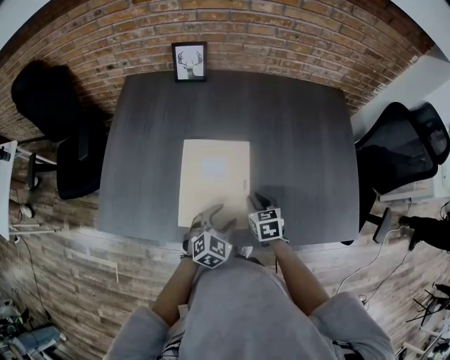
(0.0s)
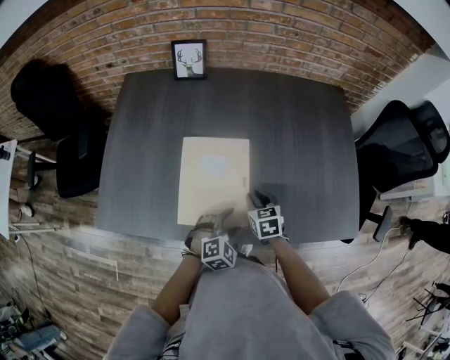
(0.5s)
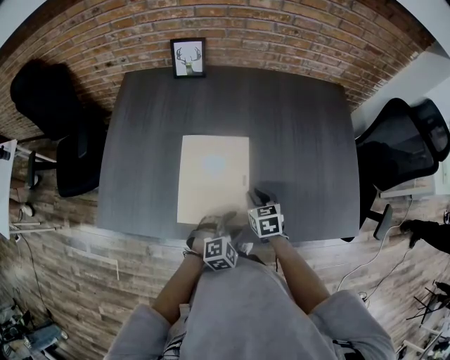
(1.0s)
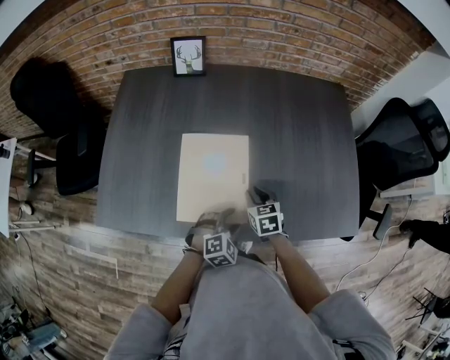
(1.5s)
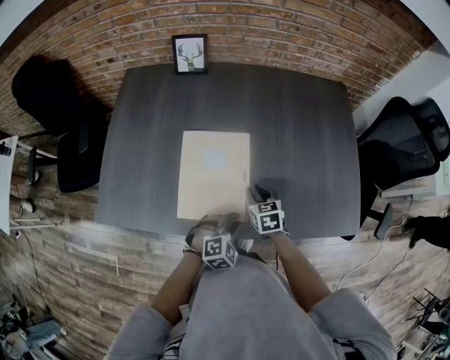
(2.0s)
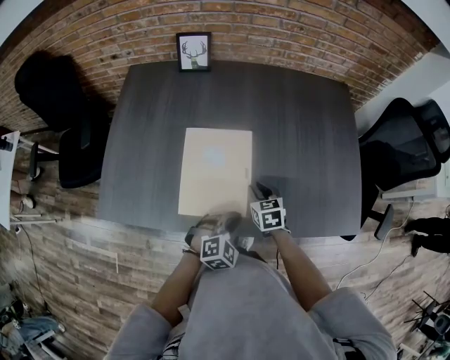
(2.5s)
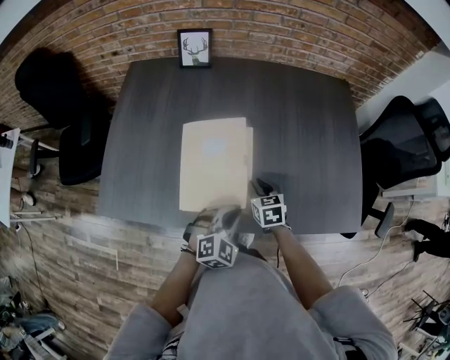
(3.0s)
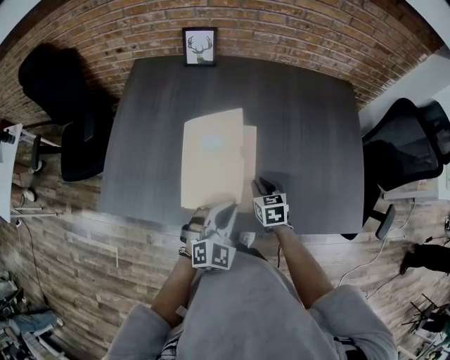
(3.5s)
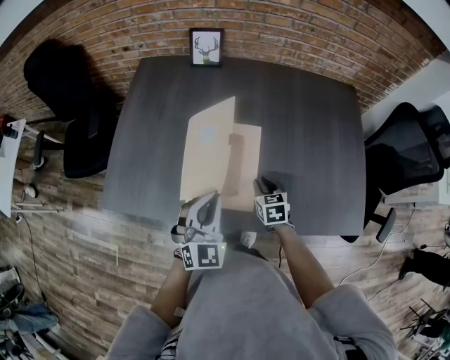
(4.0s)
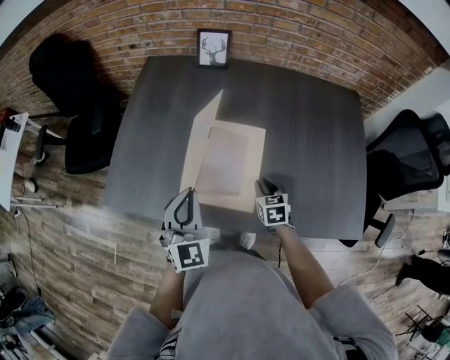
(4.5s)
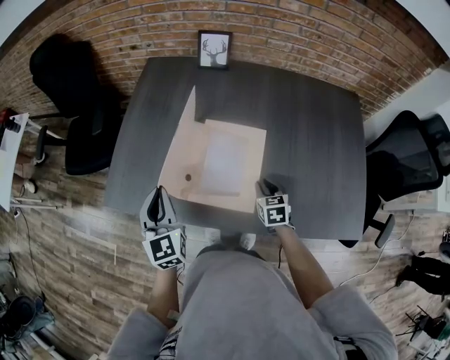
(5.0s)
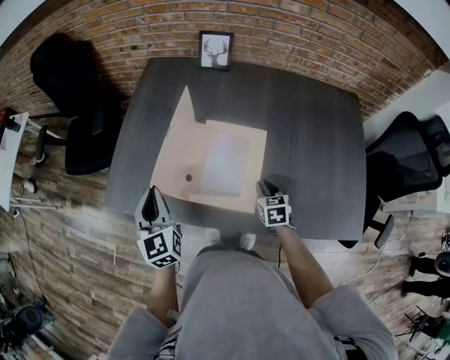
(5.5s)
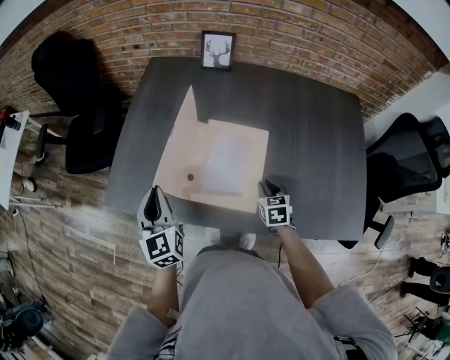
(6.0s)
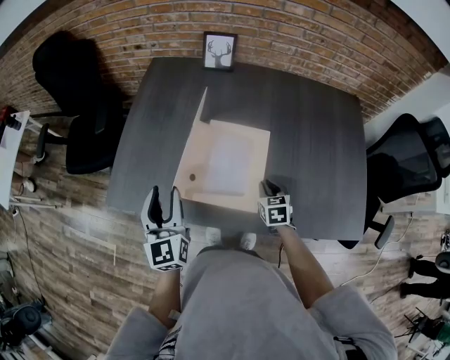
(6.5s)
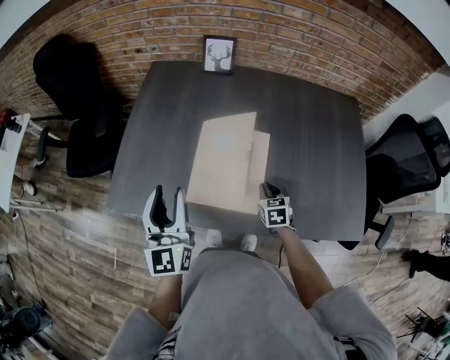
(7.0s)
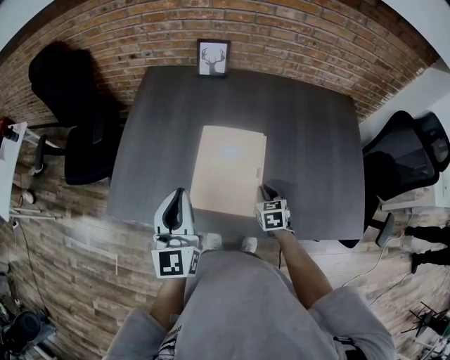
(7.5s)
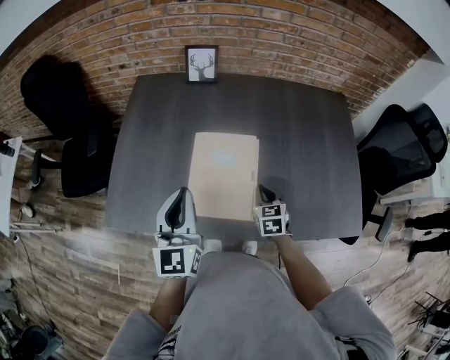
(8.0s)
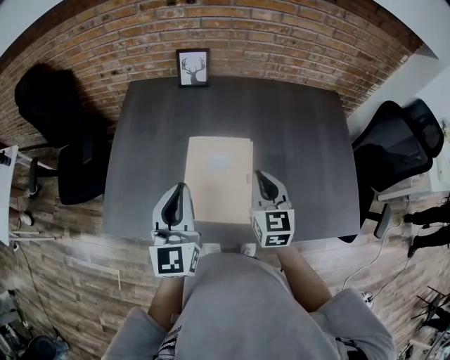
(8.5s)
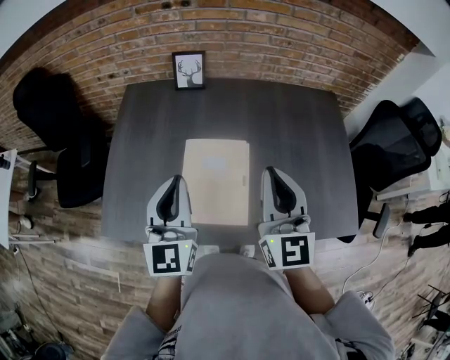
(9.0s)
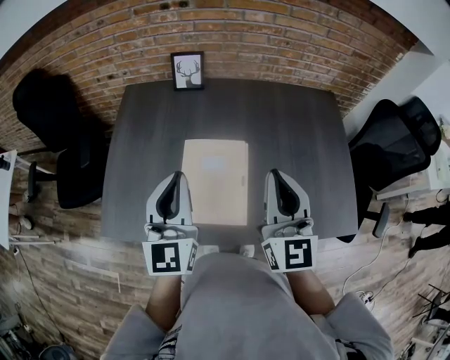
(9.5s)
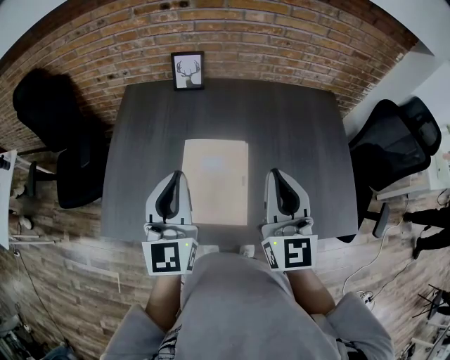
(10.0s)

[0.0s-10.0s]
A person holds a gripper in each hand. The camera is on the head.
0.0s to 2.0s: The left gripper ends up about 5 cm from where it was, rotates roughly 20 degrees, and closes up.
2.0s to 4.0s: The left gripper travels upward and to the left by roughly 20 cm, and points its fingers about 30 degrees further upward.
4.0s to 6.0s: The left gripper moves to the left, about 20 cm, and swivels roughly 40 degrees.
6.0s to 8.0s: The left gripper is displaced to the right and upward by roughly 15 cm, rotates roughly 30 degrees, and opens and closes again.
8.0s to 10.0s: The left gripper heads upward, covering approximately 5 cm. Meanwhile the right gripper goes approximately 30 cm upward, and points its fingers roughly 40 degrees further upward.

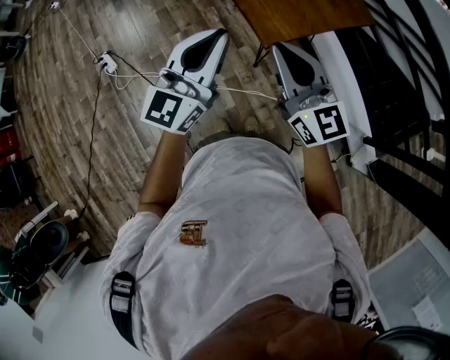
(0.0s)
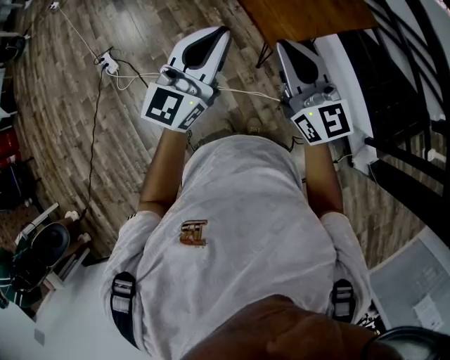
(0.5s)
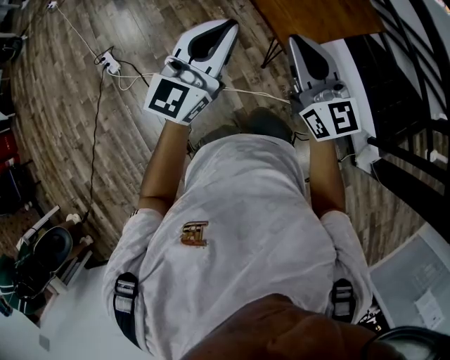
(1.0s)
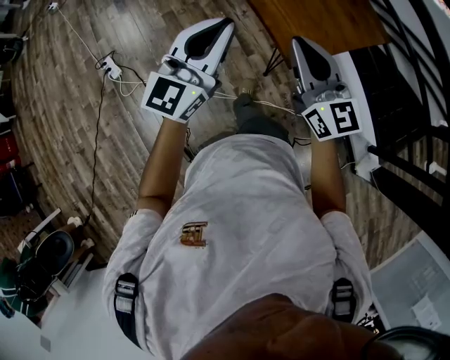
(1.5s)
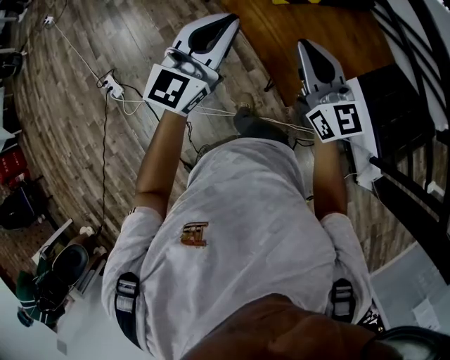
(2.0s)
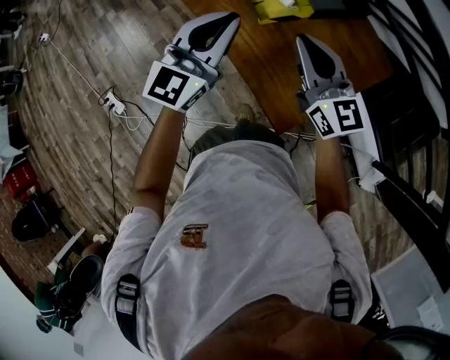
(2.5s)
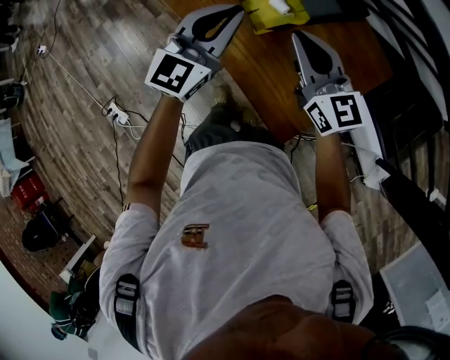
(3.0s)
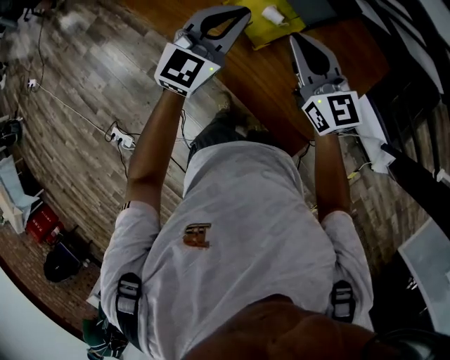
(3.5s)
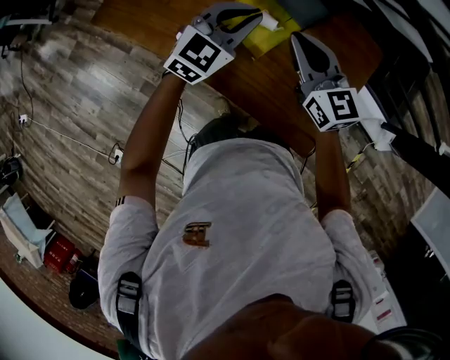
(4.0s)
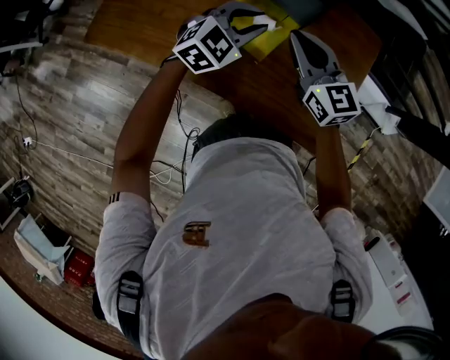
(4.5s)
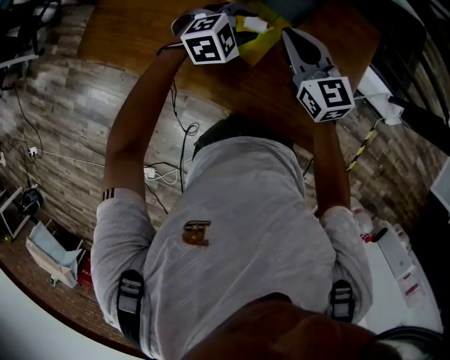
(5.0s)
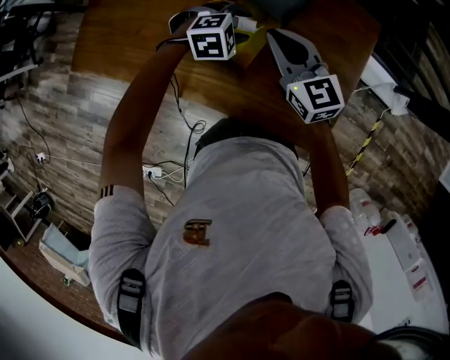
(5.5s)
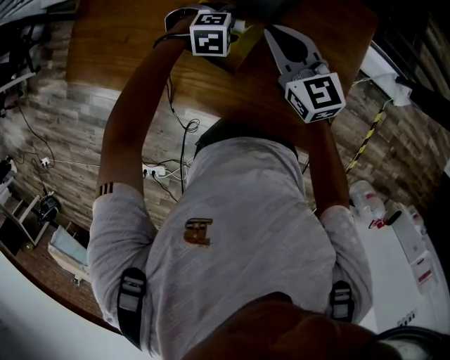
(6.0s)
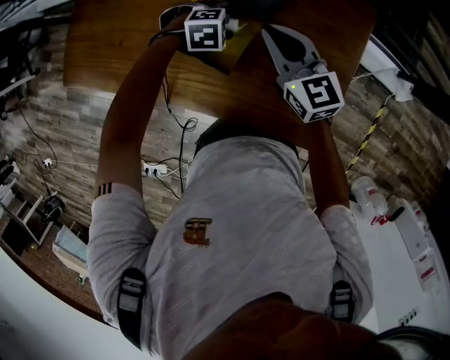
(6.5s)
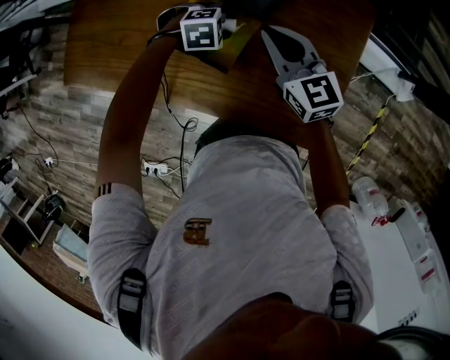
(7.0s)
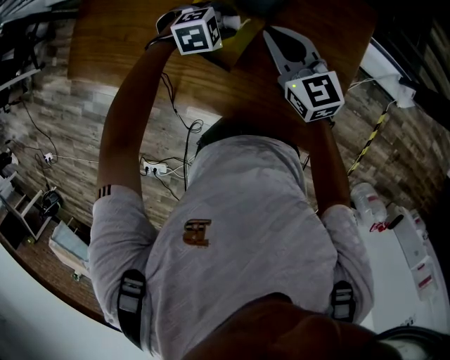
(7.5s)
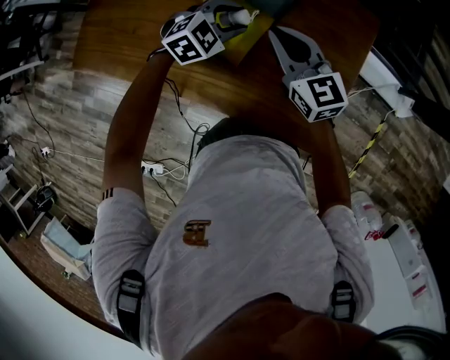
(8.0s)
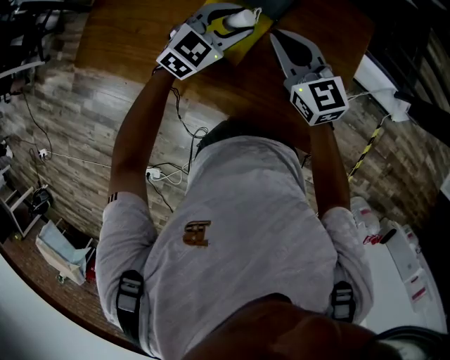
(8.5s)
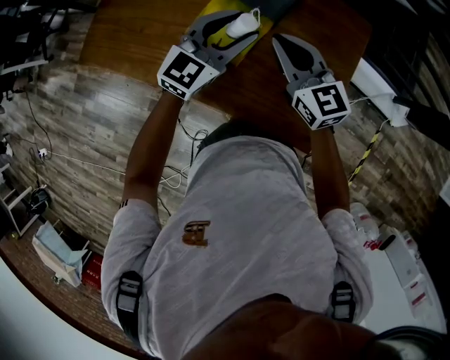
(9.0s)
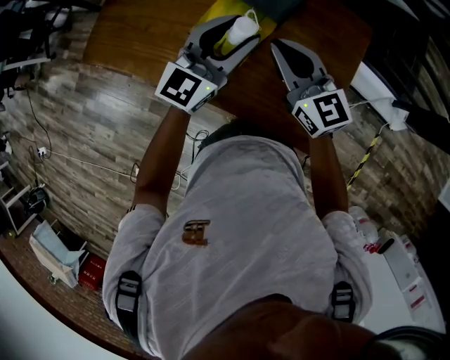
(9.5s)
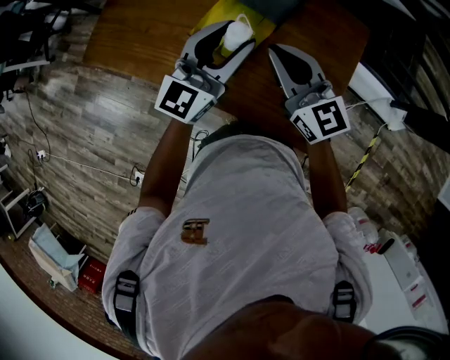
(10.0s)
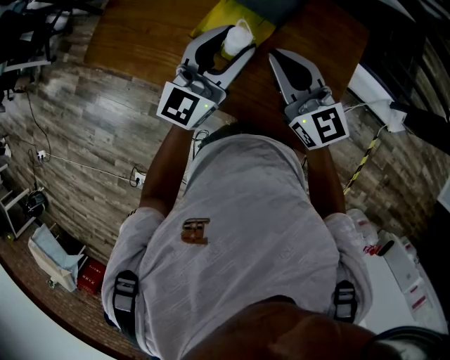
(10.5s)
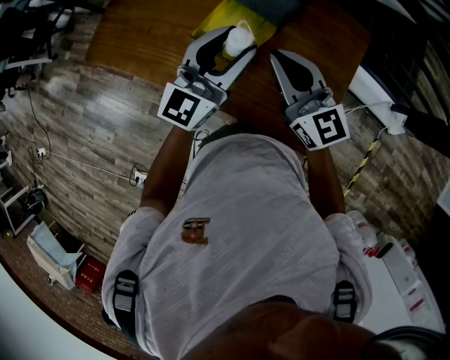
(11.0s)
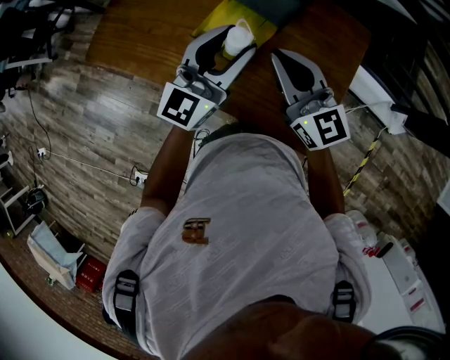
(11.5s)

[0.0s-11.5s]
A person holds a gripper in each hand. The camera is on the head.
0.0s to 2.0s: Both grippers travel together forward, some 35 cm.
2.0s to 4.0s: The right gripper changes place by some 40 cm, and swivels about 30 degrees; the left gripper changes place by roughly 50 cm, and changes its angle by roughly 40 degrees.
4.0s to 6.0s: The left gripper goes approximately 25 cm downward, angles its fingers downward, by approximately 50 degrees, and opens. The right gripper ends up about 15 cm from where it was.
6.0s to 7.5s: The grippers stay close to where they were, moving slightly.
7.5s to 9.5s: The left gripper heads upward and backward, covering approximately 30 cm, and angles its fingers upward, by some 60 degrees, while the right gripper shifts approximately 15 cm backward and upward.
9.5s to 11.5s: The grippers make only small movements.

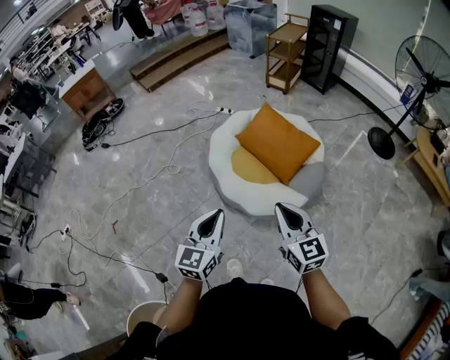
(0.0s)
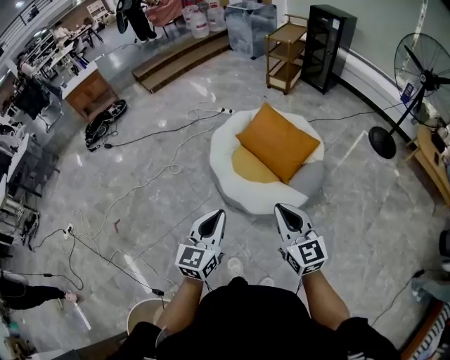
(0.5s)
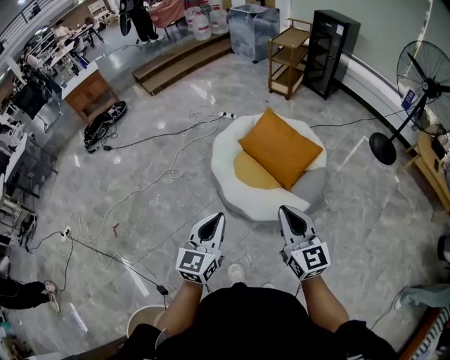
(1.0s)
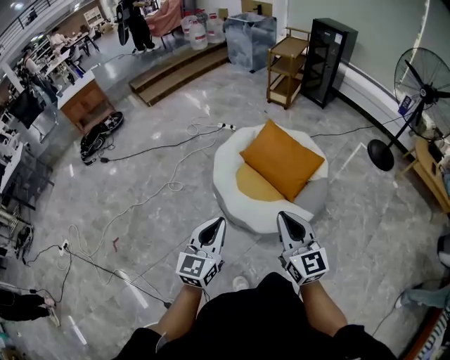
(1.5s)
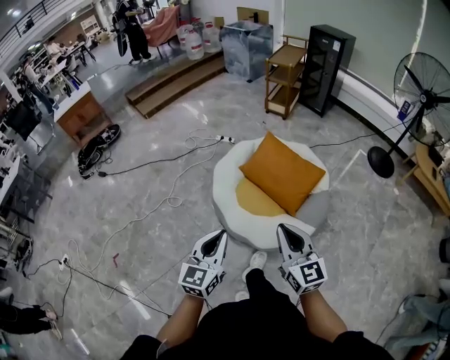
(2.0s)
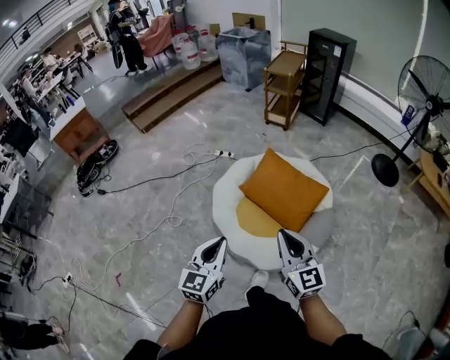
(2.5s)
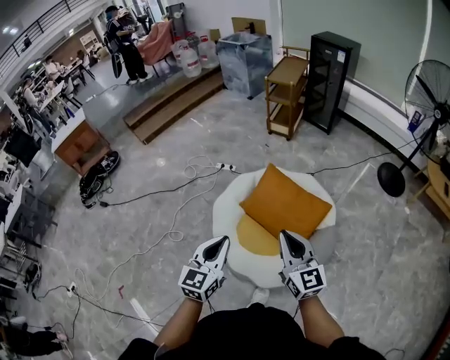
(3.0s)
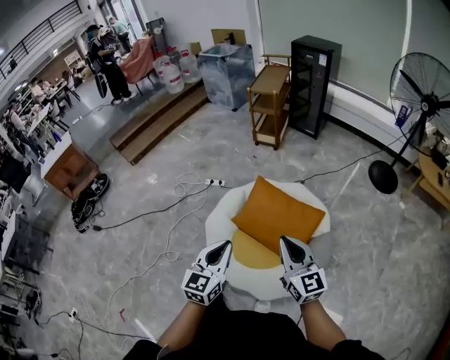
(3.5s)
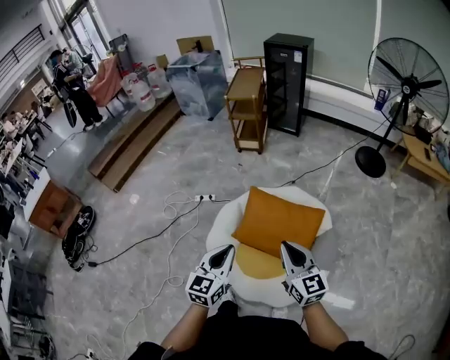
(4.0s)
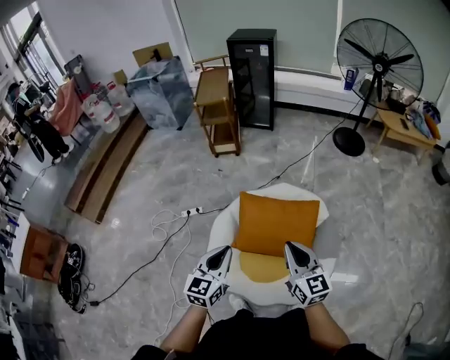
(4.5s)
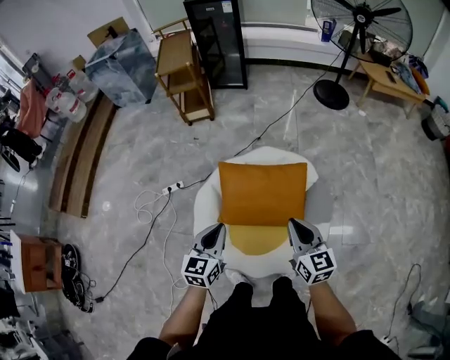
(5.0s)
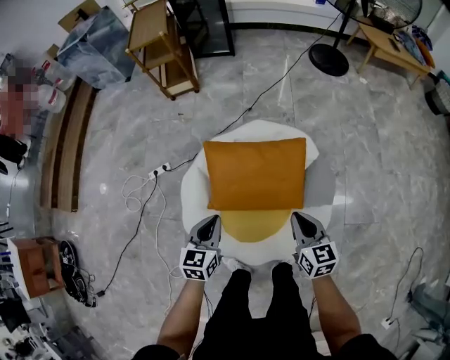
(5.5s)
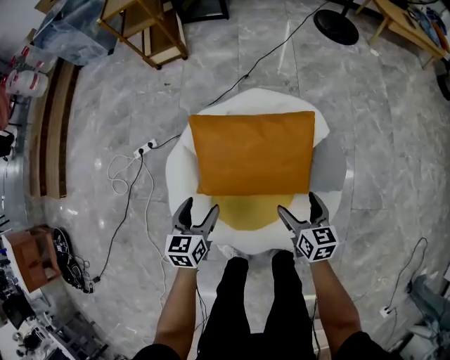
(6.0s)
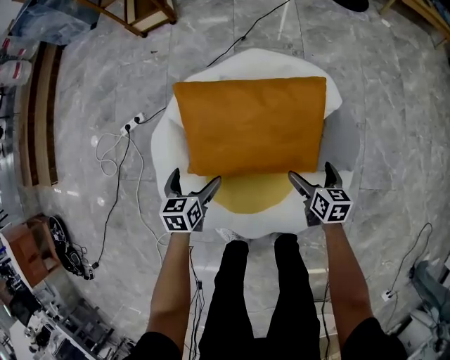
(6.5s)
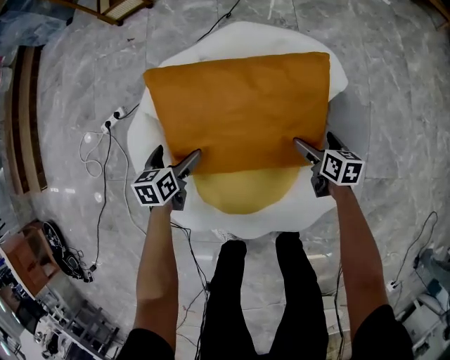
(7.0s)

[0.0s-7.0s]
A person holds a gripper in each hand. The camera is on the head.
0.0s to 2.0s: Both grippers travel together forward, about 10 cm.
2.0s to 3.5s: The two grippers go some 30 cm forward.
3.5s to 5.0s: The right gripper travels downward by some 10 cm, and swivels approximately 40 degrees. The left gripper shifts by roughly 25 cm, and rotates about 30 degrees.
5.0s to 7.0s: The two grippers go approximately 50 cm downward. The left gripper turns by about 30 degrees, and opens up; the right gripper tilts its fingers some 30 degrees downward, and opens.
